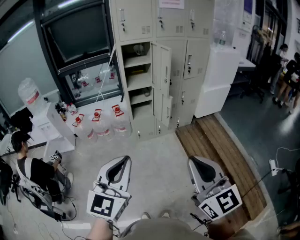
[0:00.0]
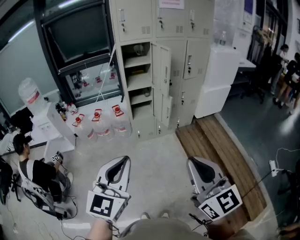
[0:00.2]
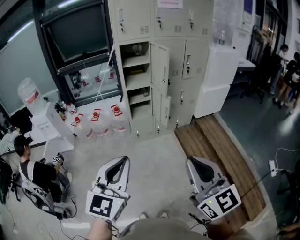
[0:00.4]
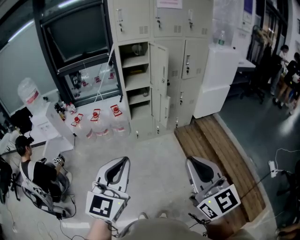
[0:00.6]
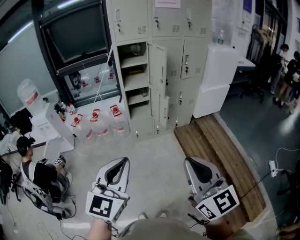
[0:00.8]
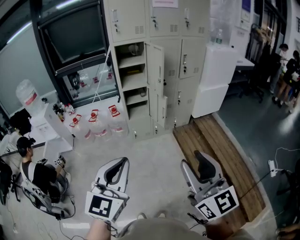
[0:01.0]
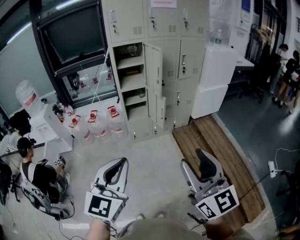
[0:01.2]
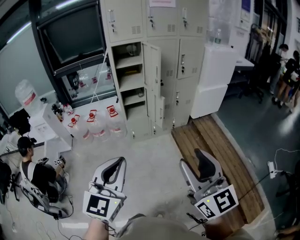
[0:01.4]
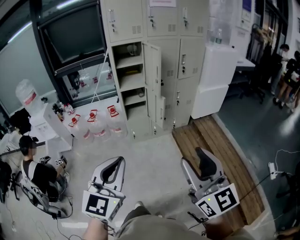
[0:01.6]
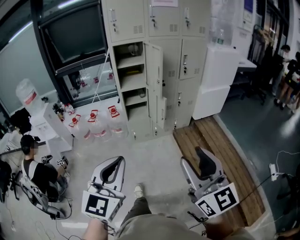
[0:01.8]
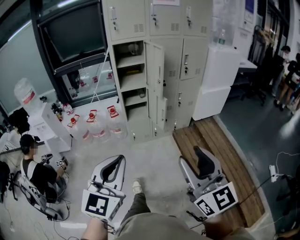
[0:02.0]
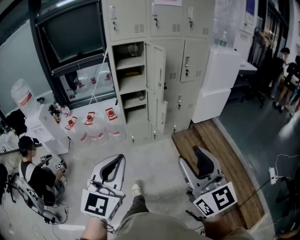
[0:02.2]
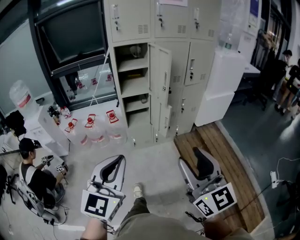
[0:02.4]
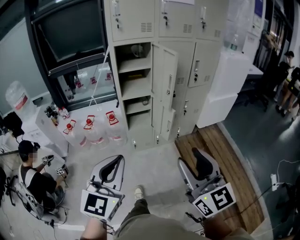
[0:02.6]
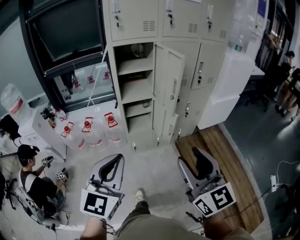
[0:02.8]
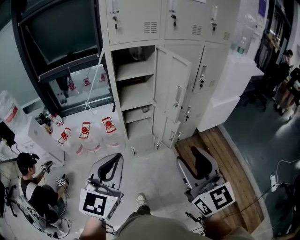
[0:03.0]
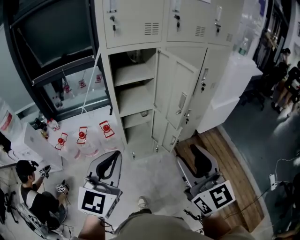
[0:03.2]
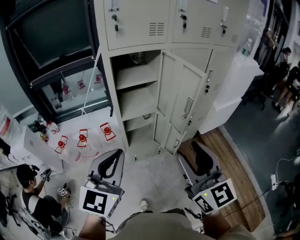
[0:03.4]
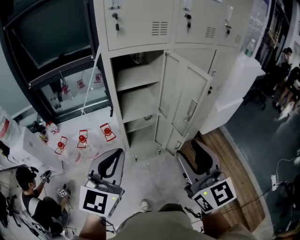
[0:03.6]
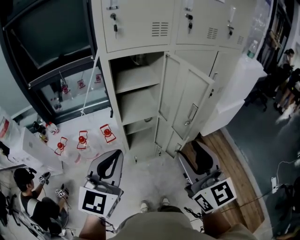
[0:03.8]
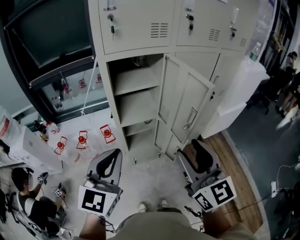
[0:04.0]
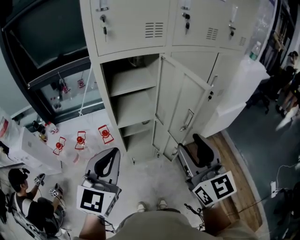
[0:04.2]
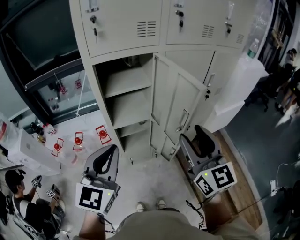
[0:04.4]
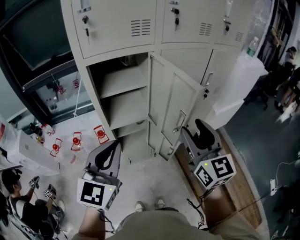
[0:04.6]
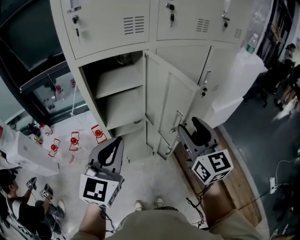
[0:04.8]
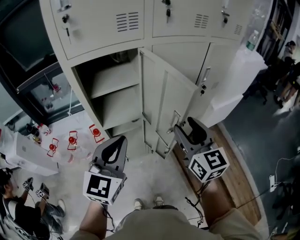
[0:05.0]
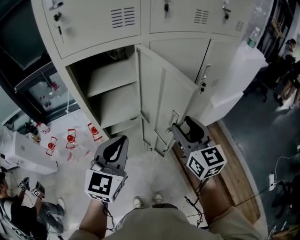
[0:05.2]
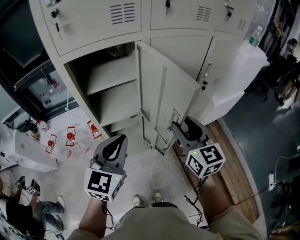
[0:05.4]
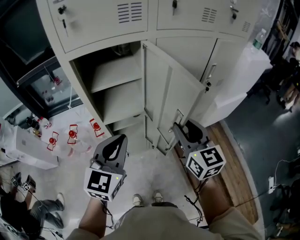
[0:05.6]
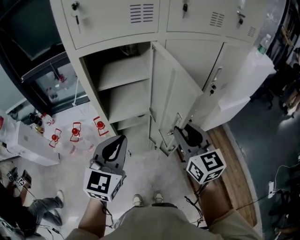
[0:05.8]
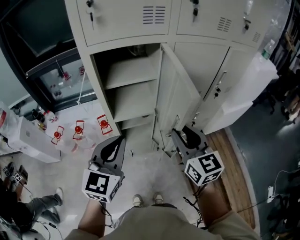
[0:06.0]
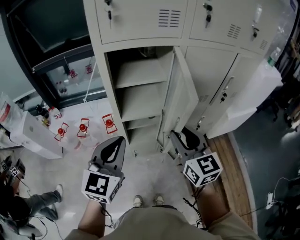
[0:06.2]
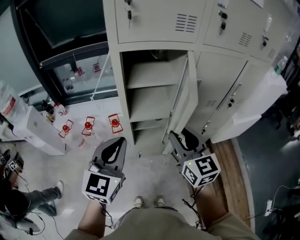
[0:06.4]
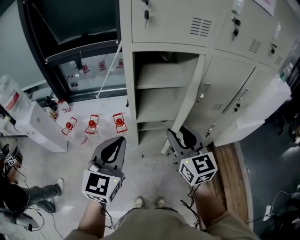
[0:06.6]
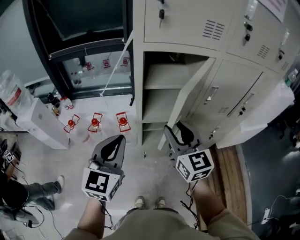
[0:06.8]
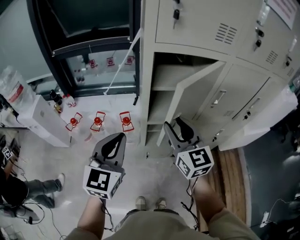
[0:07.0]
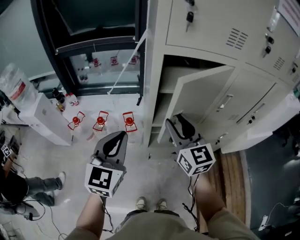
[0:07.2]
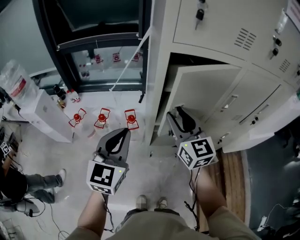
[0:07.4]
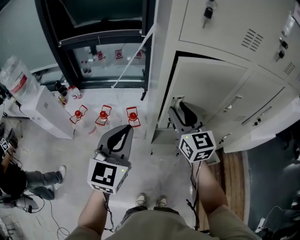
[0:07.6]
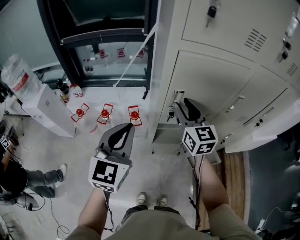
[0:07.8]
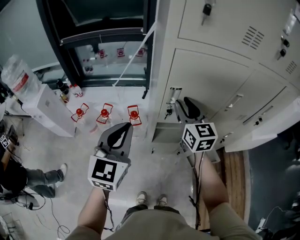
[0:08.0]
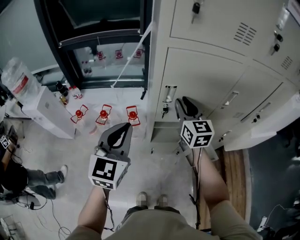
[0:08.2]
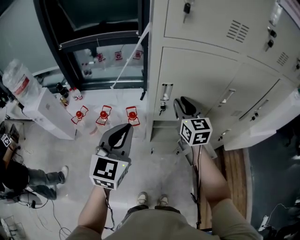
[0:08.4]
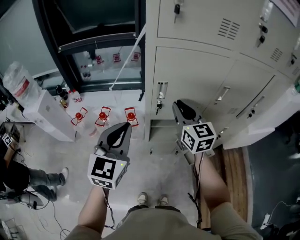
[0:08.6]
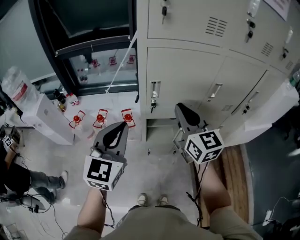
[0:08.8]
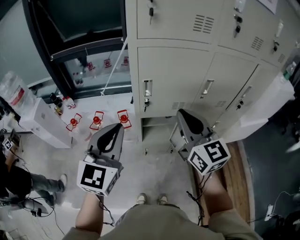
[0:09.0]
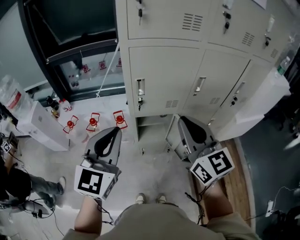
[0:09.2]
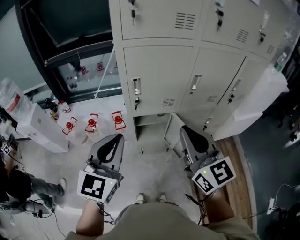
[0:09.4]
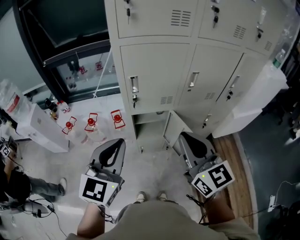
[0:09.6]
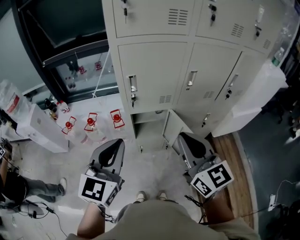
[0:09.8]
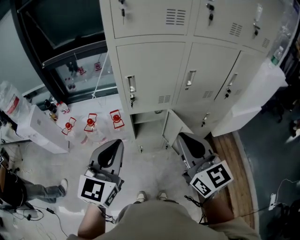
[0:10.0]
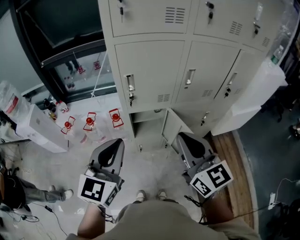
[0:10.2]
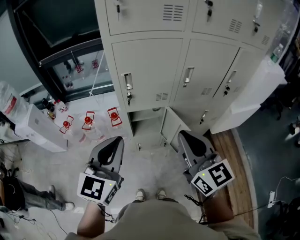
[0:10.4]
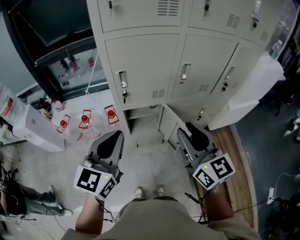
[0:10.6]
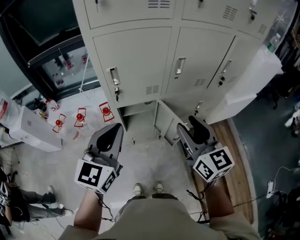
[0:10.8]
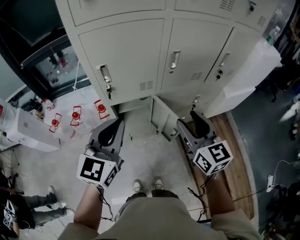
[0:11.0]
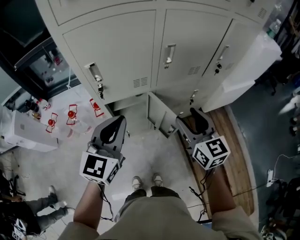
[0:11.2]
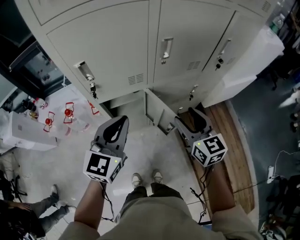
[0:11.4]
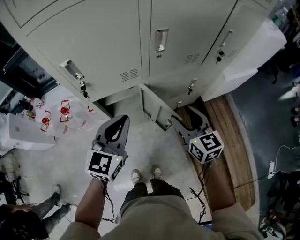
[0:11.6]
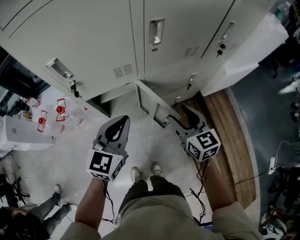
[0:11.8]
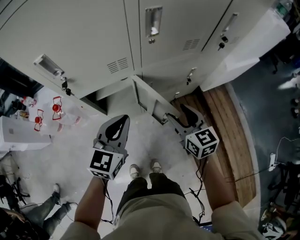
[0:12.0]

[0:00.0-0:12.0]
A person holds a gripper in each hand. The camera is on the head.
0:00.0 to 0:01.6: Both grippers travel together to the right, roughly 5 cm. The right gripper opens up.
0:01.6 to 0:03.0: Both grippers move forward, some 35 cm.
0:03.0 to 0:04.4: The two grippers go some 25 cm forward.
0:04.4 to 0:06.0: The left gripper heads forward and downward, covering about 10 cm. Meanwhile the right gripper is displaced downward and forward by approximately 10 cm.
0:06.0 to 0:07.6: The two grippers go roughly 25 cm to the left and forward.
0:07.6 to 0:09.0: The left gripper goes some 10 cm backward, upward and to the right. The right gripper shifts about 20 cm backward, to the right and upward, and closes.
0:09.0 to 0:10.4: The left gripper moves backward and to the right, some 10 cm, while the right gripper is displaced backward and to the right by about 15 cm.
0:10.4 to 0:12.0: Both grippers move downward, forward and to the right, roughly 35 cm. The right gripper changes its angle by about 30 degrees, and opens its fingers. Meanwhile the left gripper turns by approximately 20 degrees.

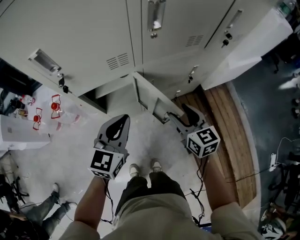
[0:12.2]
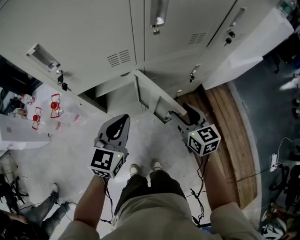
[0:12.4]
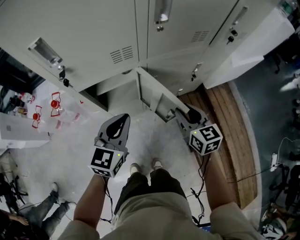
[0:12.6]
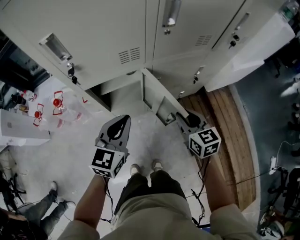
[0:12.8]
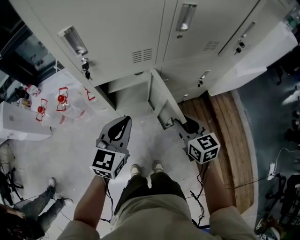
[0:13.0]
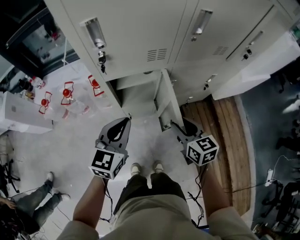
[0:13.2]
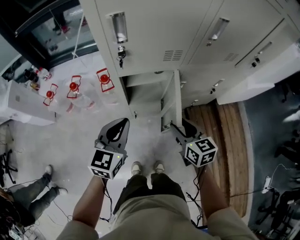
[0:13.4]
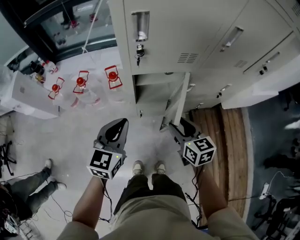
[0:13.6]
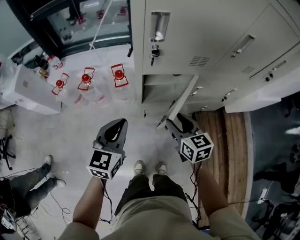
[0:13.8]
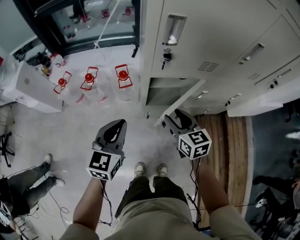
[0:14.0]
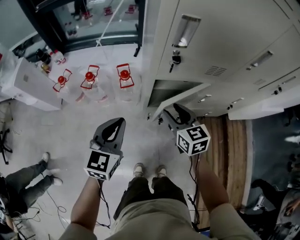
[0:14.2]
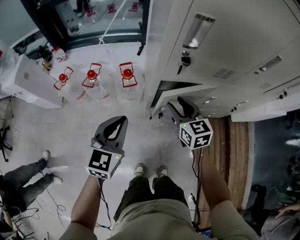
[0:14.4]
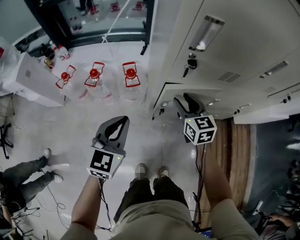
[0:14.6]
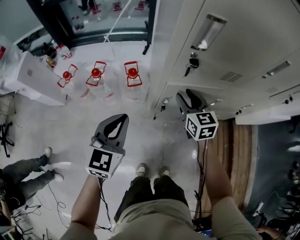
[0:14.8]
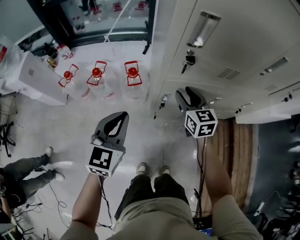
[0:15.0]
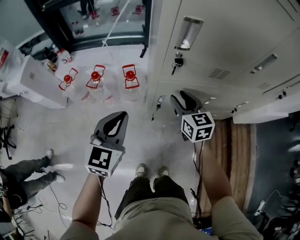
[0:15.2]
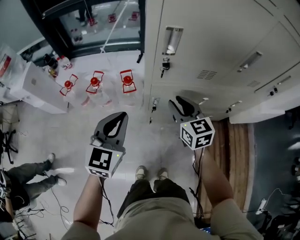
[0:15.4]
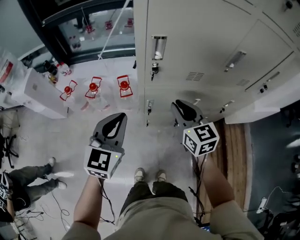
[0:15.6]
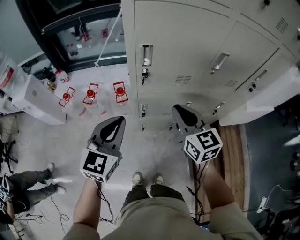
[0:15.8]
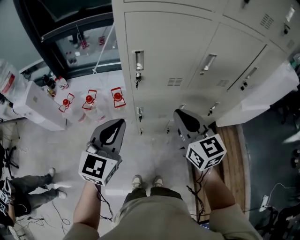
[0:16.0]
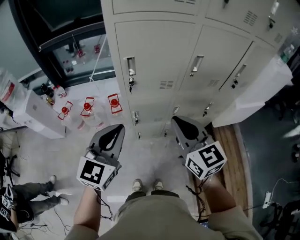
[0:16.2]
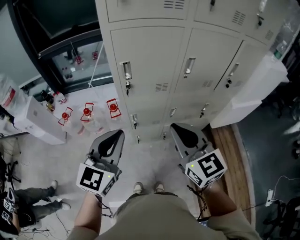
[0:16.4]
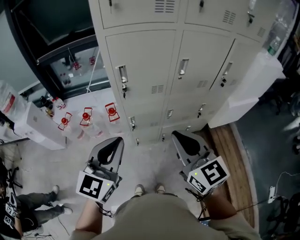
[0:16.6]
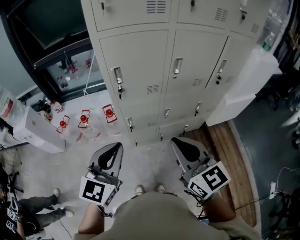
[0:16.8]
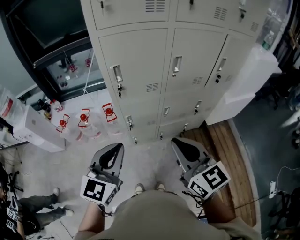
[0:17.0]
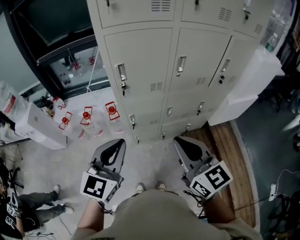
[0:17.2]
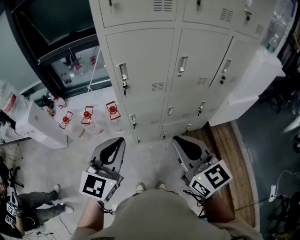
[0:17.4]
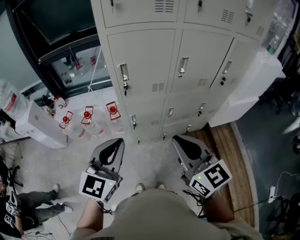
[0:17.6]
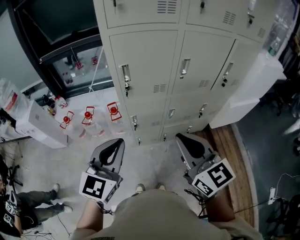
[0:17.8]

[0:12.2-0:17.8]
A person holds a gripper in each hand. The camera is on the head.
0:12.2 to 0:13.6: Both grippers travel together to the left, some 20 cm. The right gripper closes and opens again.
0:13.6 to 0:15.0: The right gripper heads forward and to the left, covering about 20 cm, while the left gripper travels to the left and forward by about 10 cm.
0:15.0 to 0:16.4: The right gripper is displaced upward and backward by some 40 cm, and closes up. Meanwhile the left gripper goes some 30 cm upward, backward and to the right.
0:16.4 to 0:17.8: The right gripper moves backward, roughly 5 cm.

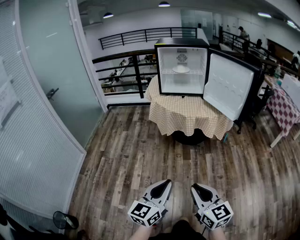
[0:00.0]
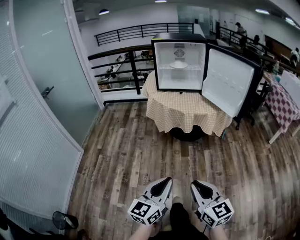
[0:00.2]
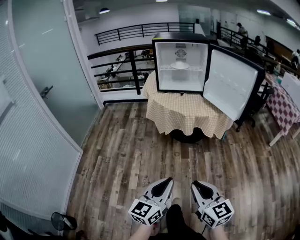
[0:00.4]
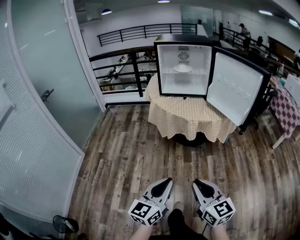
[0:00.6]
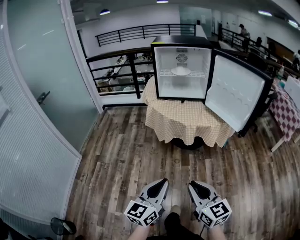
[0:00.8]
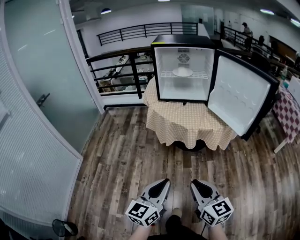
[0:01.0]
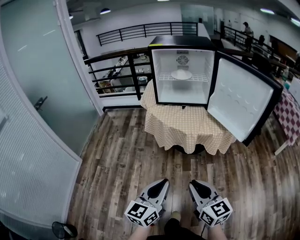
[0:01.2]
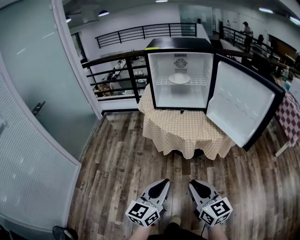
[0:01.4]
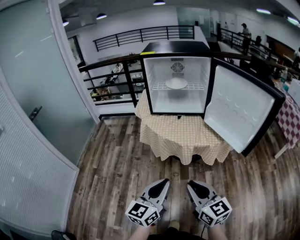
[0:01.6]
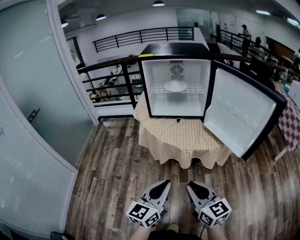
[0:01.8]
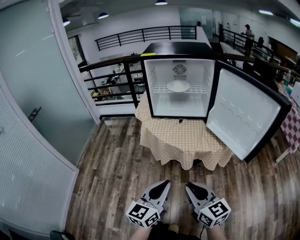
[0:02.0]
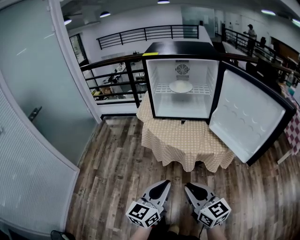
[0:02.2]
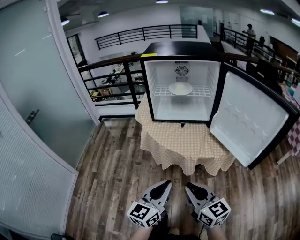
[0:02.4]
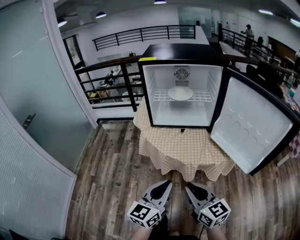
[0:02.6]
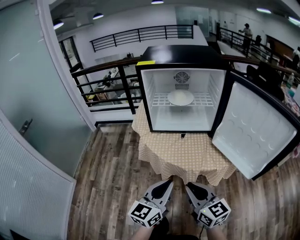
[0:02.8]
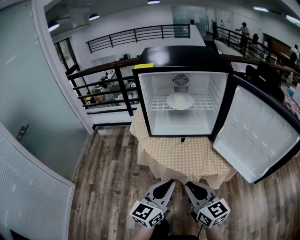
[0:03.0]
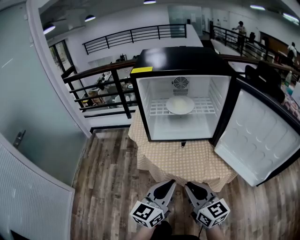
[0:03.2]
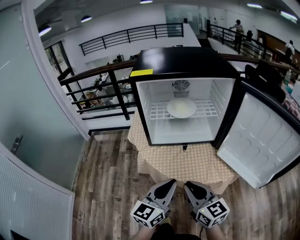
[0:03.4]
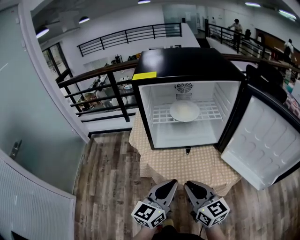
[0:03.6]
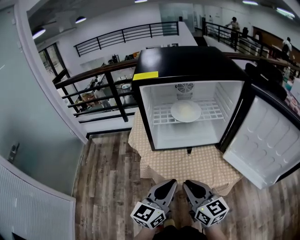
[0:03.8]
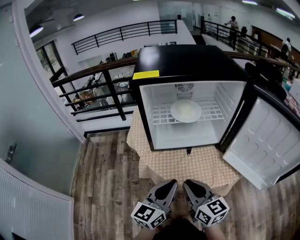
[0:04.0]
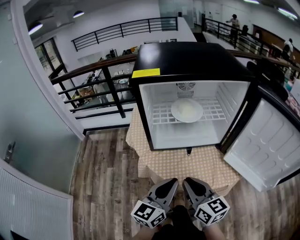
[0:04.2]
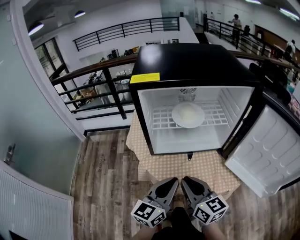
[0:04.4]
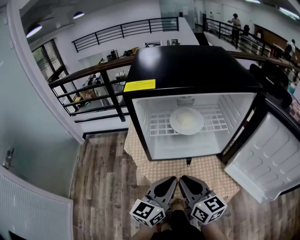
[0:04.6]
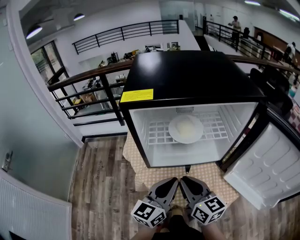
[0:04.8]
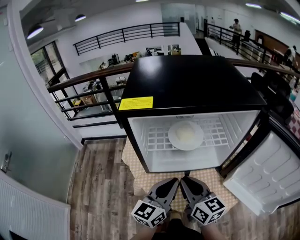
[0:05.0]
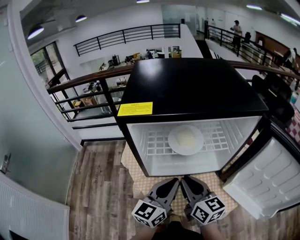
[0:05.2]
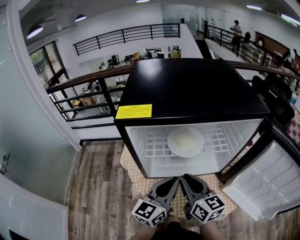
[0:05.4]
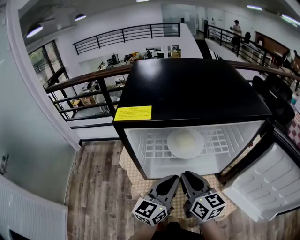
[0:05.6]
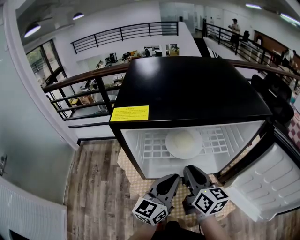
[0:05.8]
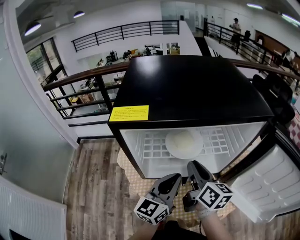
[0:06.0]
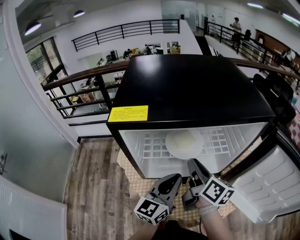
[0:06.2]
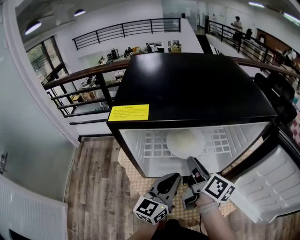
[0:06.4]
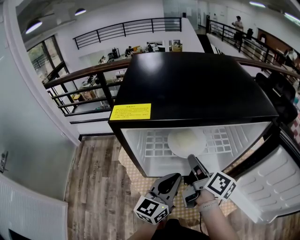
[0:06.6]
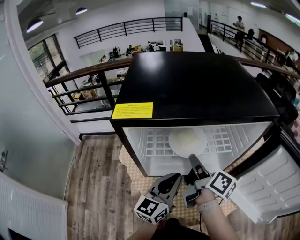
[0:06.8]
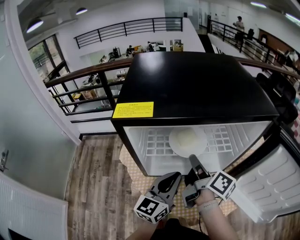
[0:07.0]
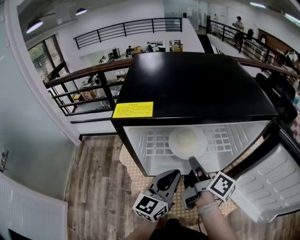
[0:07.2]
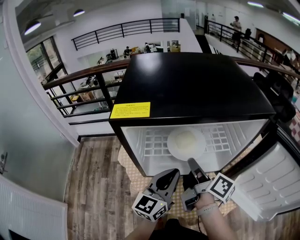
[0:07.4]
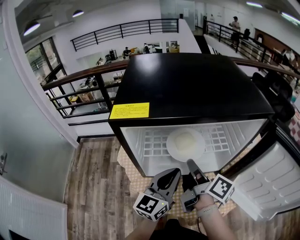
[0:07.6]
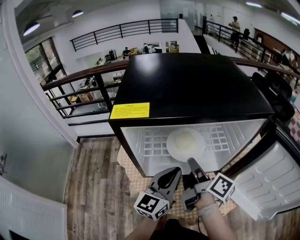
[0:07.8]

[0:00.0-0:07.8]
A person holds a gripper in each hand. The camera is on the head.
0:00.0 to 0:01.6: The two grippers go roughly 30 cm forward.
0:01.6 to 0:03.2: The grippers both shift forward by some 25 cm.
0:03.2 to 0:04.6: Both grippers travel together forward, about 15 cm.
0:04.6 to 0:06.2: The right gripper is displaced forward by roughly 15 cm, and turns by about 30 degrees; the left gripper is displaced forward by some 10 cm.
0:06.2 to 0:07.8: The right gripper rotates about 20 degrees.
